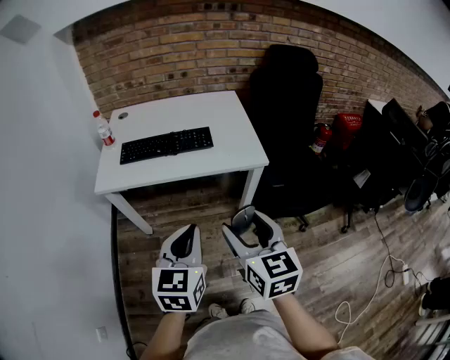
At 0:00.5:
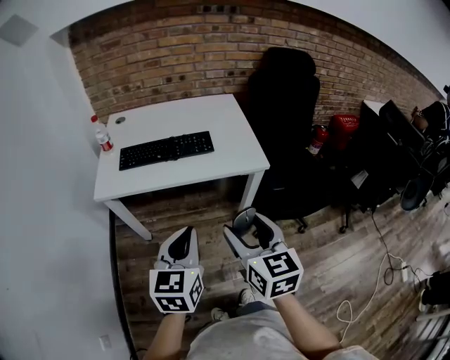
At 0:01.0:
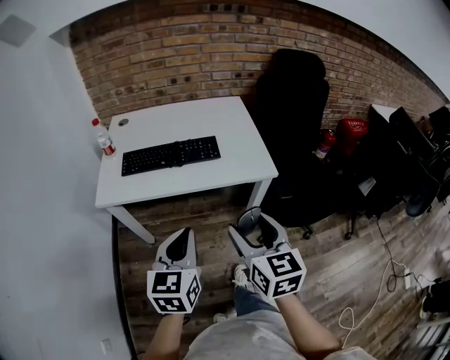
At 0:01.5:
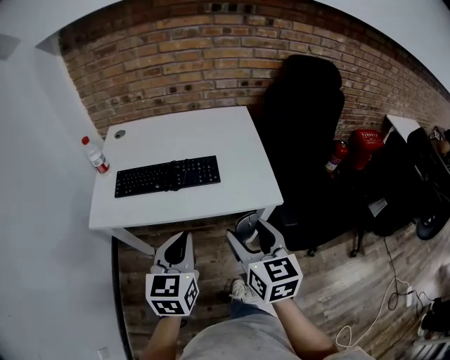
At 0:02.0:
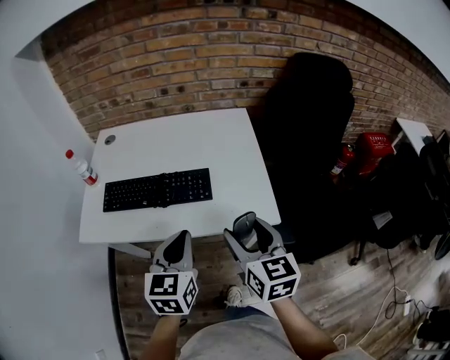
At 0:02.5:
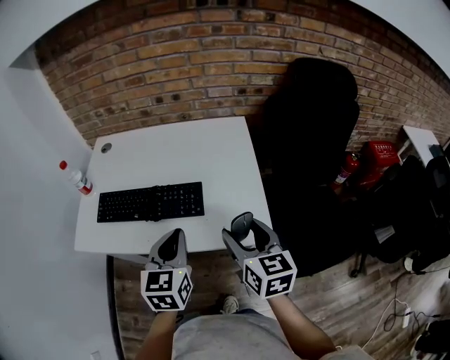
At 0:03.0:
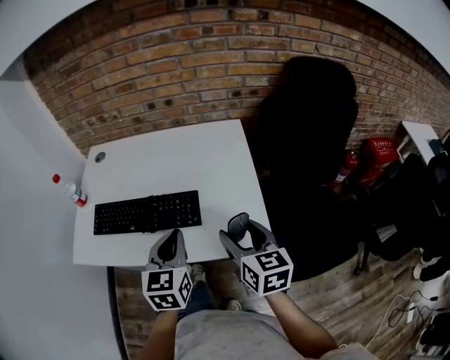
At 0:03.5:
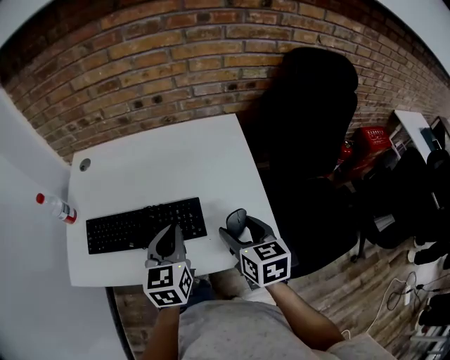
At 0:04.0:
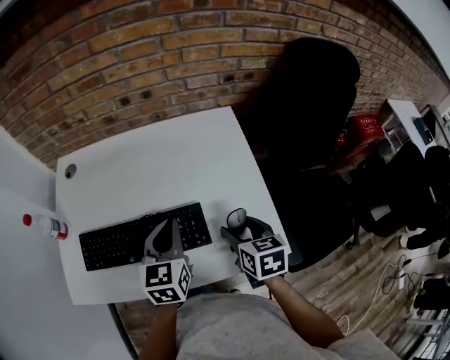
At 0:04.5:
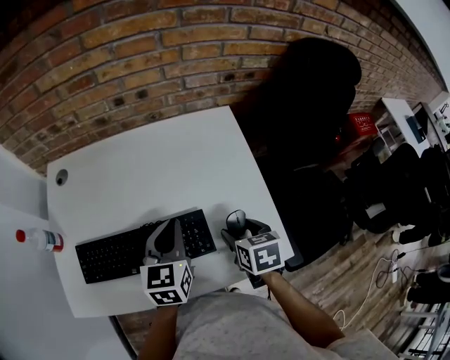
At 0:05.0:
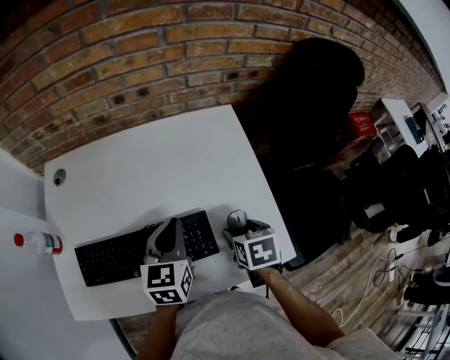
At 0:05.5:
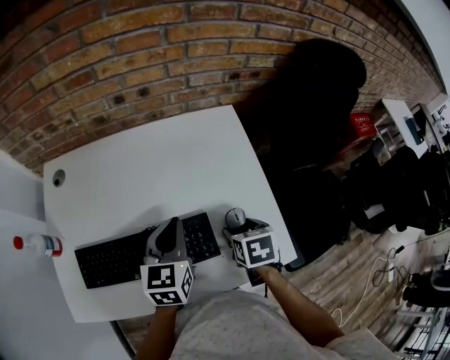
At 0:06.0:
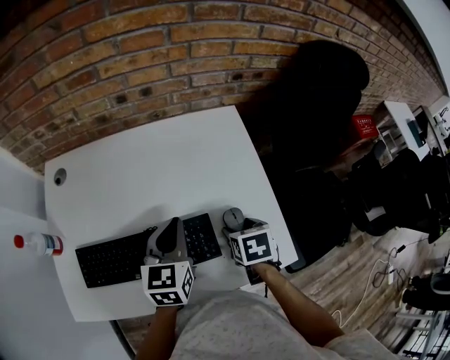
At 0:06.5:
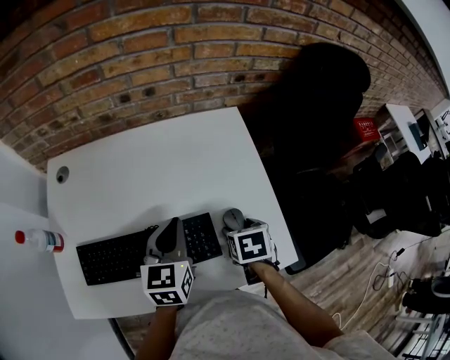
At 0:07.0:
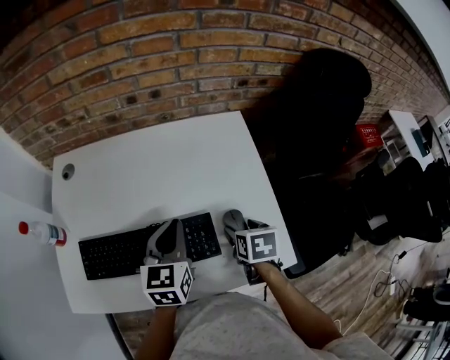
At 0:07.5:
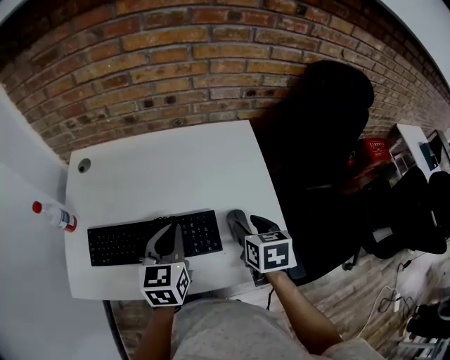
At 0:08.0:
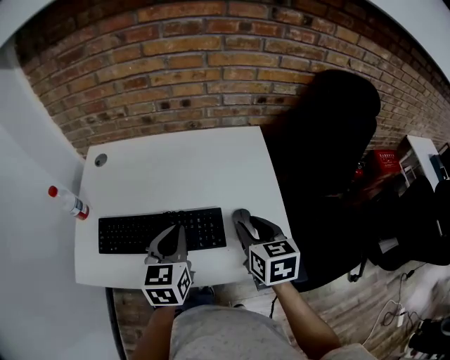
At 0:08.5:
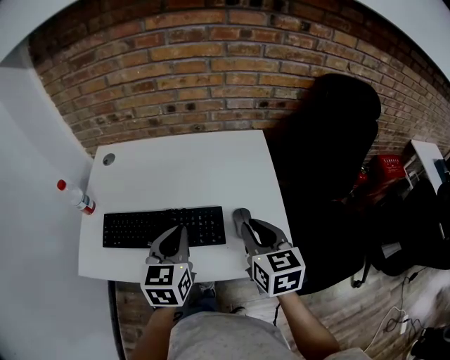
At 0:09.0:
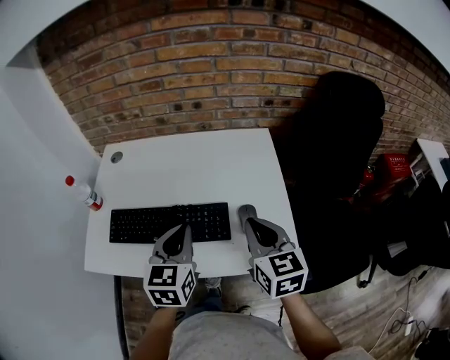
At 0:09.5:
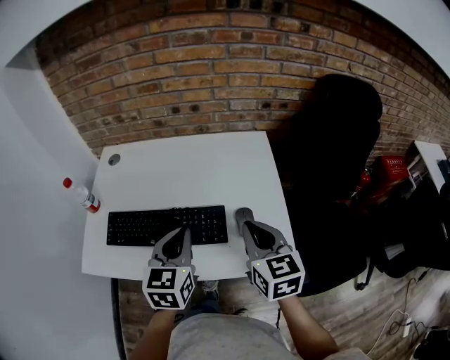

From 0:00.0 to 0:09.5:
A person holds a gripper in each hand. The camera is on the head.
From 0:00.0 to 0:02.0: Both grippers travel together forward, approximately 30 cm.
From 0:02.0 to 0:04.0: The right gripper travels forward and downward by about 25 cm, and swivels some 20 degrees. Meanwhile the left gripper moves forward, about 25 cm.
From 0:04.0 to 0:05.5: The left gripper shifts some 5 cm forward. Meanwhile the right gripper shifts some 5 cm downward, and turns by some 20 degrees.
From 0:05.5 to 0:07.5: The left gripper moves backward, approximately 5 cm. Meanwhile the right gripper travels upward by approximately 5 cm.
From 0:07.5 to 0:09.5: The left gripper moves backward, about 10 cm. Meanwhile the right gripper goes roughly 15 cm upward and backward, changes its angle by approximately 30 degrees, and closes.

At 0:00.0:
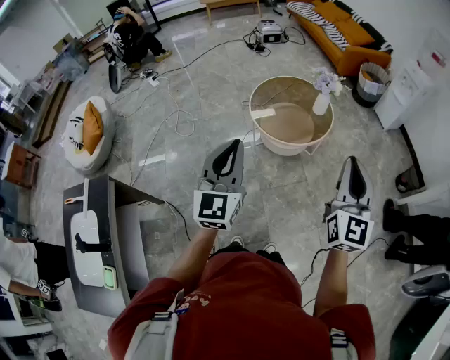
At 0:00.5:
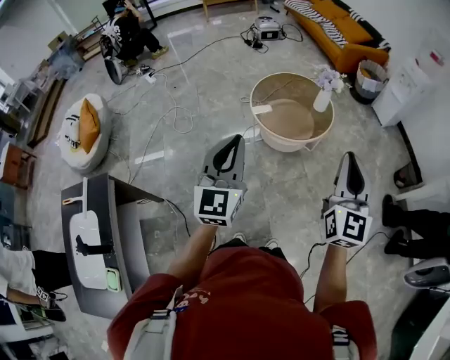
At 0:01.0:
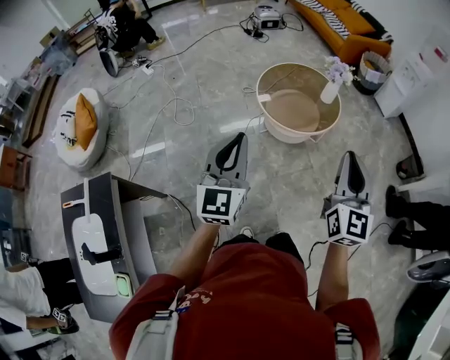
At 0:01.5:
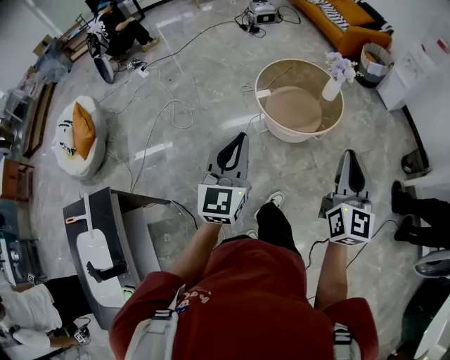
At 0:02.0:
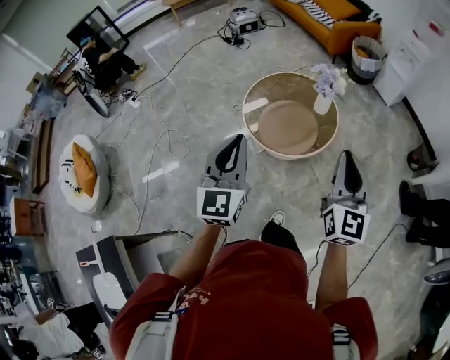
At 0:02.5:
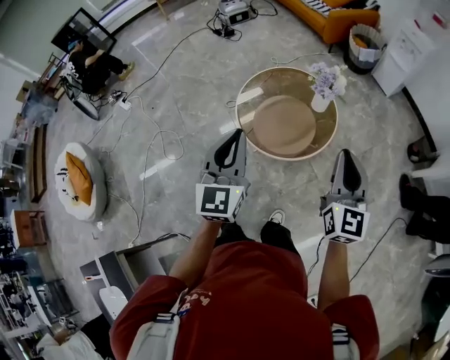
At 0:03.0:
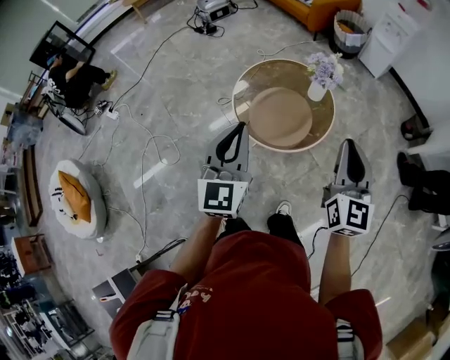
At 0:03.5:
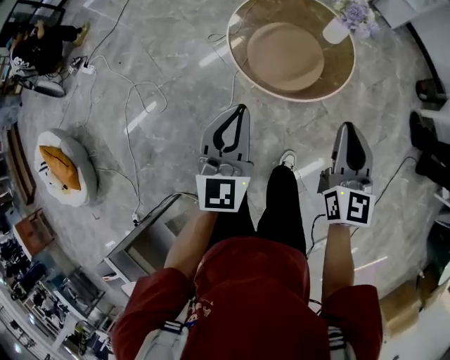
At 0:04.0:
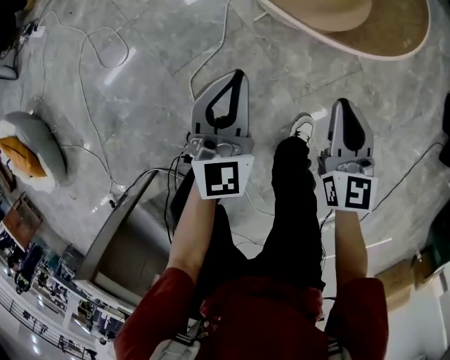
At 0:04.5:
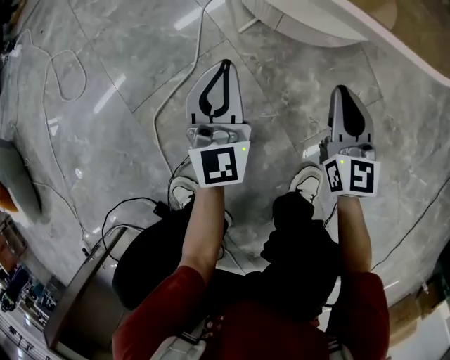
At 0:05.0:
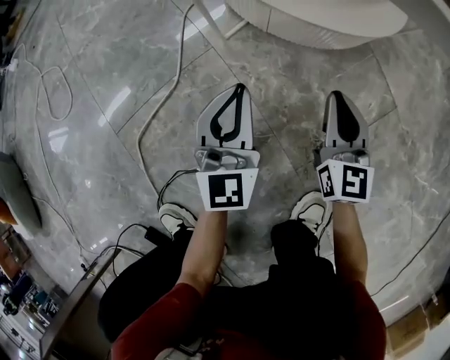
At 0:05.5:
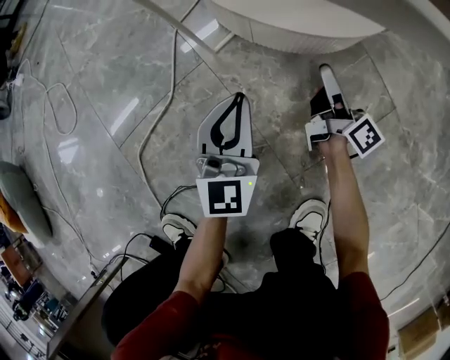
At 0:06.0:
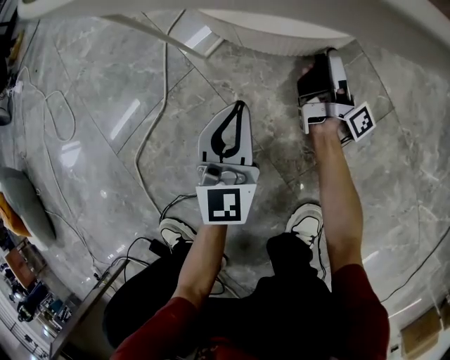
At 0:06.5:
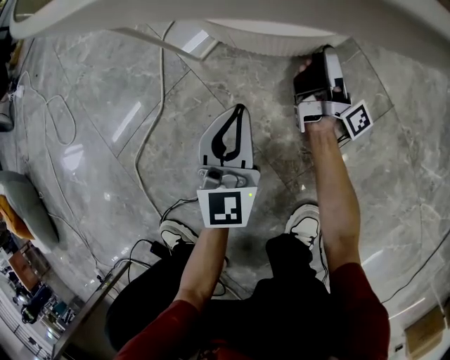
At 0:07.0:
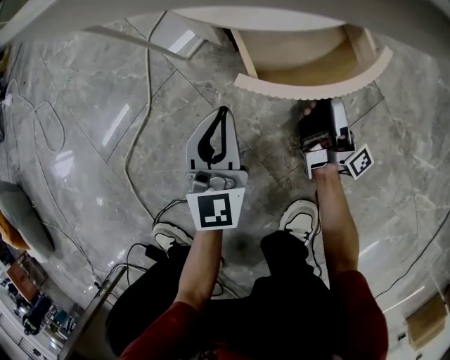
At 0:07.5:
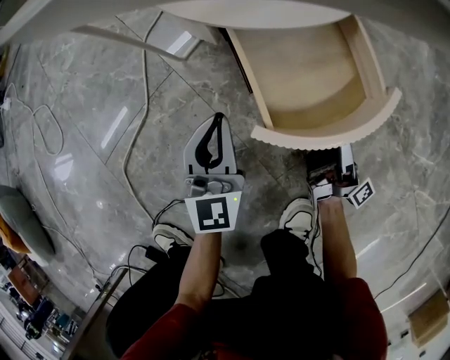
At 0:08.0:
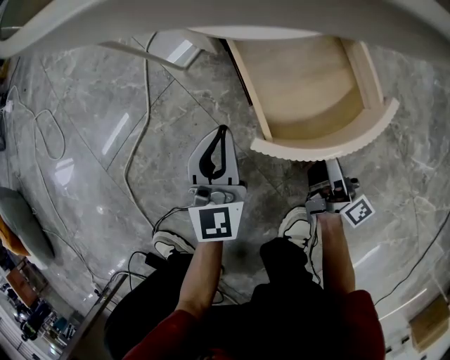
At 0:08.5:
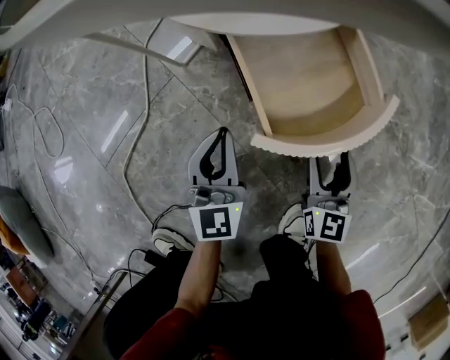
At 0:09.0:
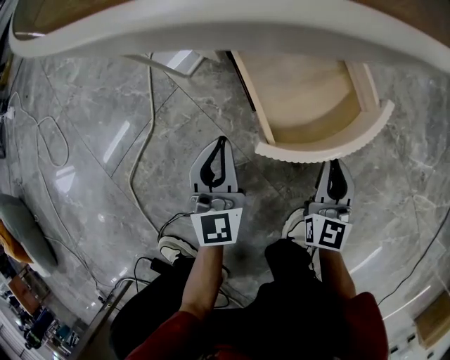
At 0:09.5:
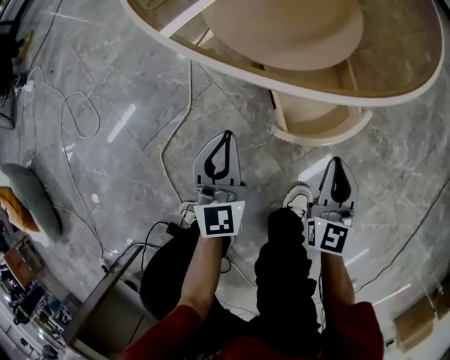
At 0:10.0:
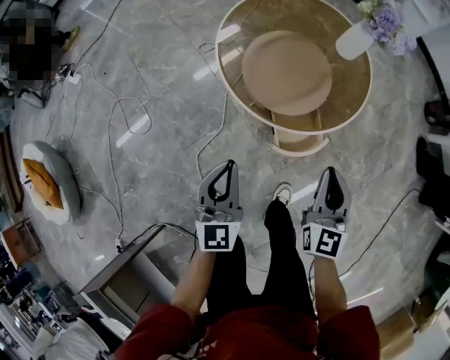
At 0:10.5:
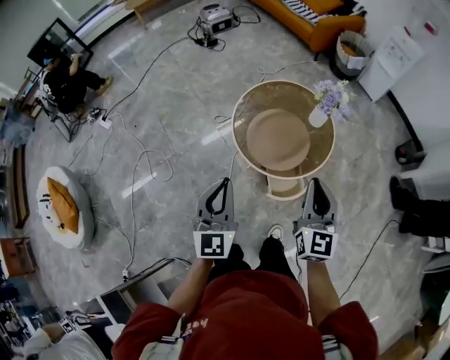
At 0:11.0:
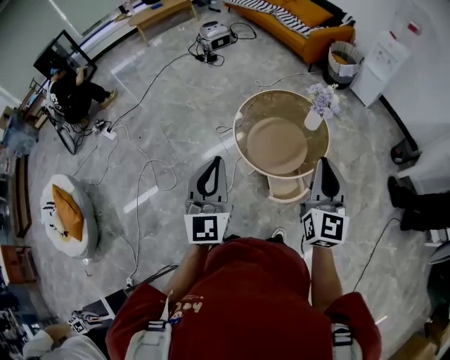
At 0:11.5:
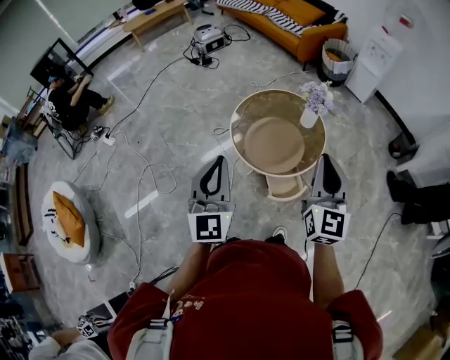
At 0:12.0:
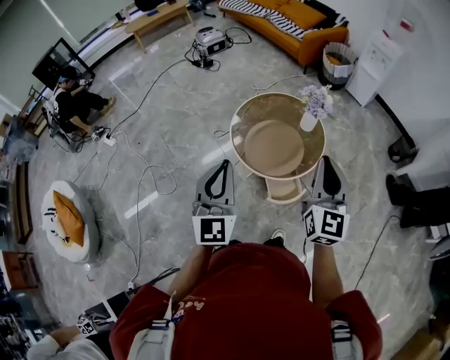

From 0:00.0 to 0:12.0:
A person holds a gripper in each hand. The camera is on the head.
From 0:00.0 to 0:02.0: The left gripper moves forward, approximately 20 cm; the right gripper heads forward and to the left, covering about 20 cm.
From 0:02.0 to 0:04.0: The two grippers go roughly 50 cm downward. The right gripper turns by approximately 30 degrees.
From 0:04.0 to 0:06.0: The right gripper travels downward and forward by about 50 cm, twists approximately 80 degrees clockwise, seen from behind, and opens its fingers; the left gripper moves downward, about 40 cm.
From 0:06.0 to 0:08.0: The right gripper shifts about 20 cm backward.
From 0:08.0 to 0:10.0: Both grippers move upward, some 60 cm. The right gripper rolls counterclockwise, seen from behind, by about 70 degrees, and closes its fingers.
From 0:10.0 to 0:12.0: The two grippers go roughly 40 cm upward.

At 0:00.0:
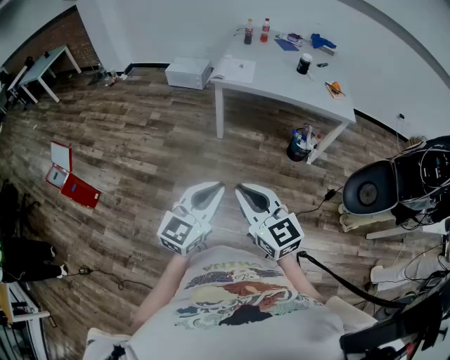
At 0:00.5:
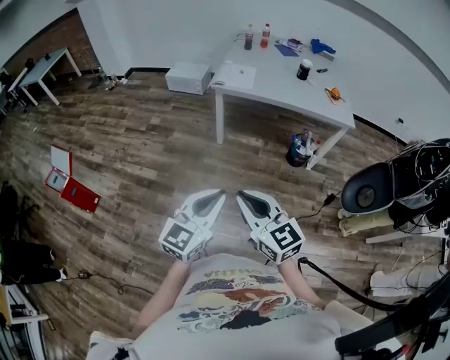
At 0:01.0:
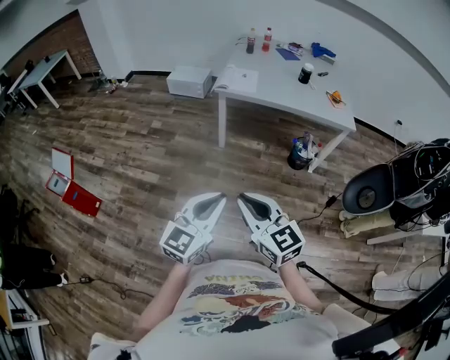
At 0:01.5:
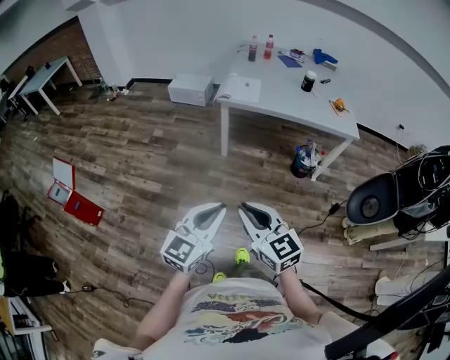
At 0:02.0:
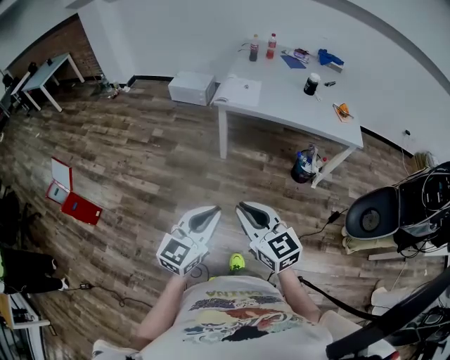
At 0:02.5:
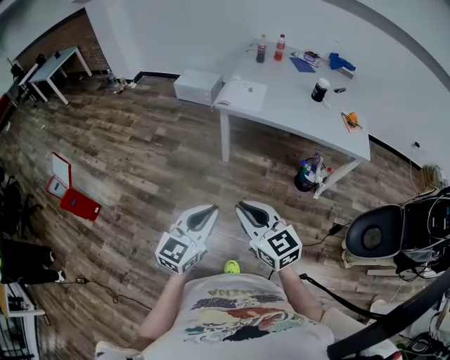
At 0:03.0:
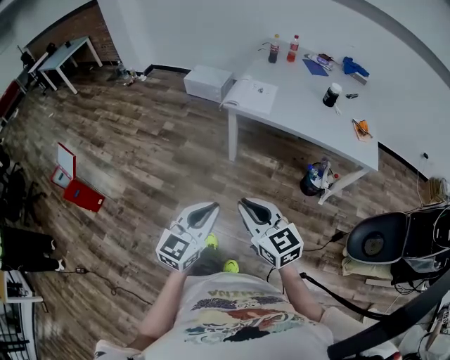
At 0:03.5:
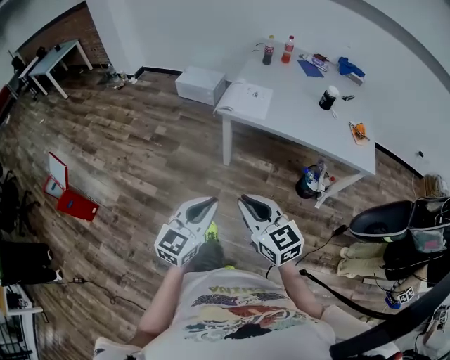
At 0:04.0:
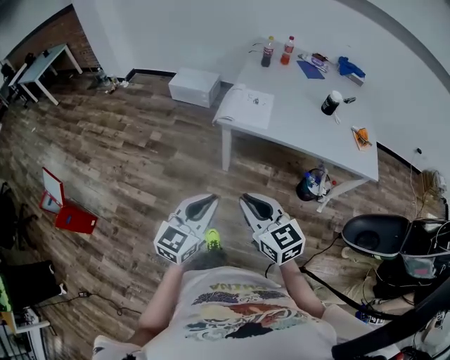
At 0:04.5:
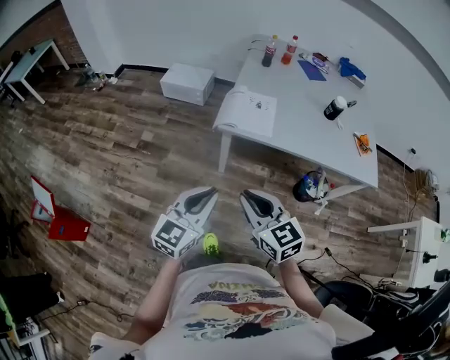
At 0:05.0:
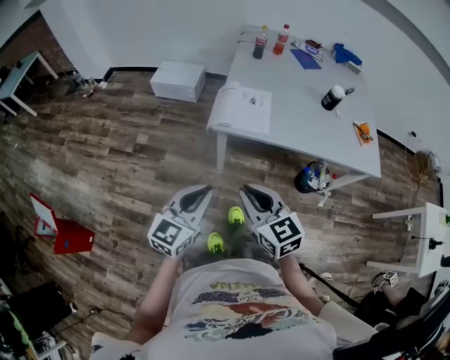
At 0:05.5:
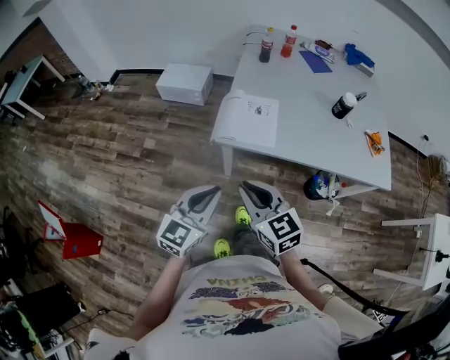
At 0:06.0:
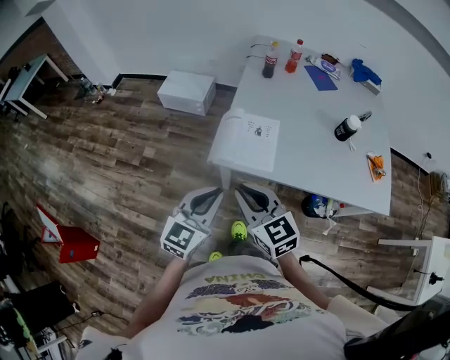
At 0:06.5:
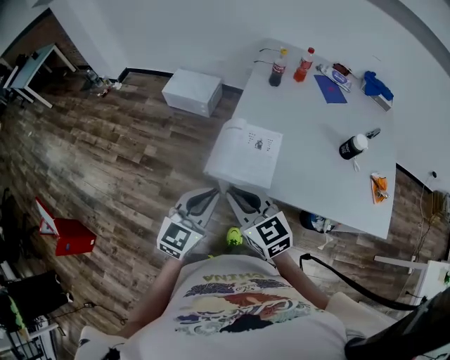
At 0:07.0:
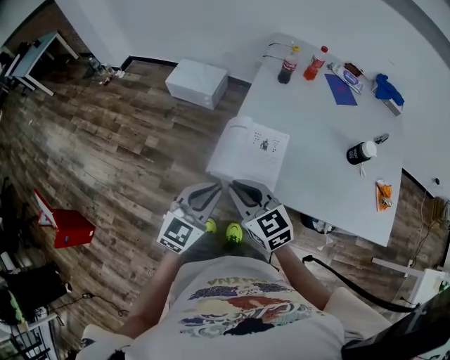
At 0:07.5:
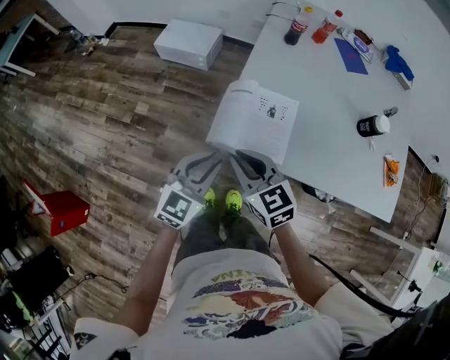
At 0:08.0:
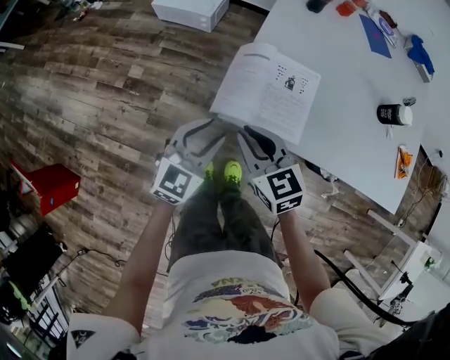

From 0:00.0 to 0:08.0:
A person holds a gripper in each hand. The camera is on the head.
From 0:00.0 to 0:02.0: The grippers both shift forward by roughly 10 cm.
From 0:02.0 to 0:04.0: The grippers both shift forward by some 30 cm.
From 0:04.0 to 0:06.0: Both grippers move forward, about 35 cm.
From 0:06.0 to 0:08.0: Both grippers move downward and forward, some 25 cm. The left gripper opens up.
